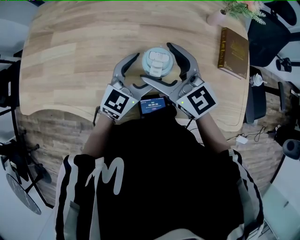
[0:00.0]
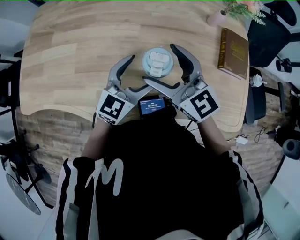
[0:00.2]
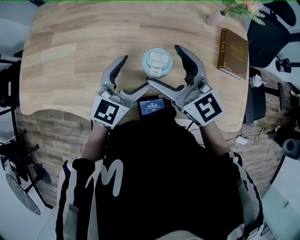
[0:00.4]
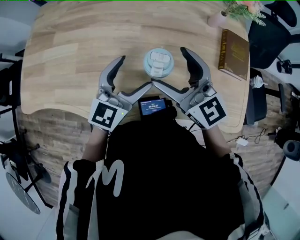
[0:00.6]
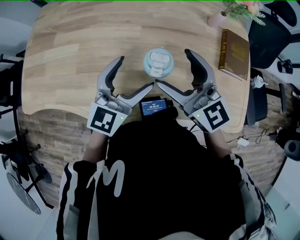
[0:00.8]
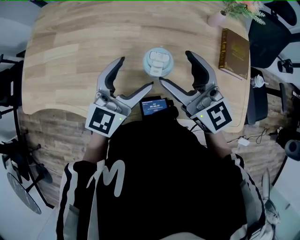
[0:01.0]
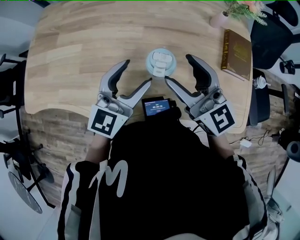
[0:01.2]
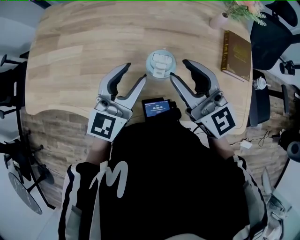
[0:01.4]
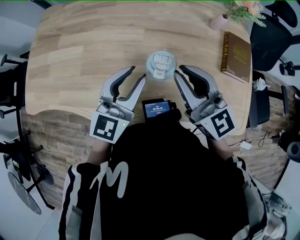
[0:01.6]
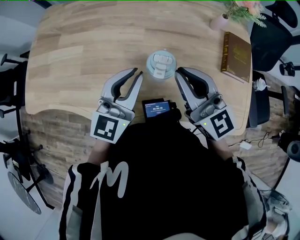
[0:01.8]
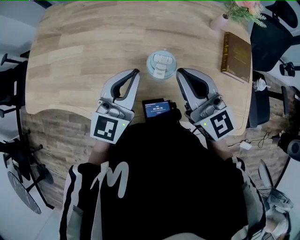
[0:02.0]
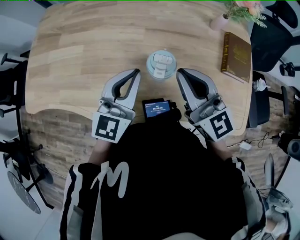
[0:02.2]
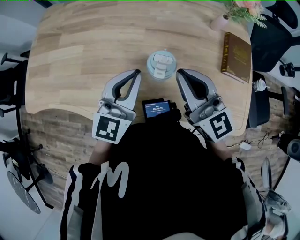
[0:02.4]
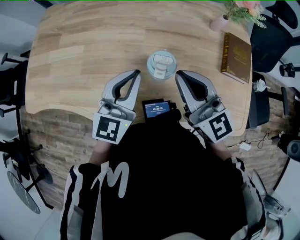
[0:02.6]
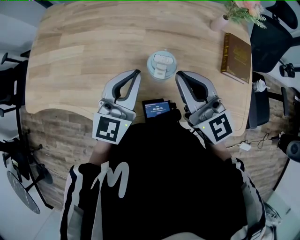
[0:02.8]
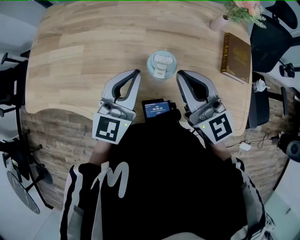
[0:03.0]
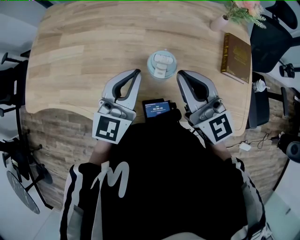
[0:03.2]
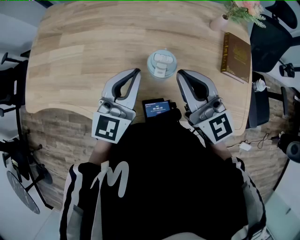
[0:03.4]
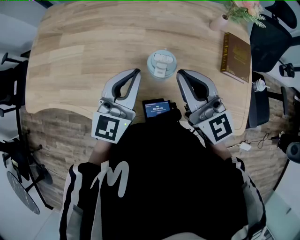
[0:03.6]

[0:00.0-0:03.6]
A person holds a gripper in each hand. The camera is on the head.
0:00.0 to 0:01.8: The left gripper is displaced upward and to the left by approximately 10 cm, and closes its fingers. Meanwhile the right gripper moves about 10 cm, and closes its fingers.
0:01.8 to 0:03.6: Neither gripper changes place.

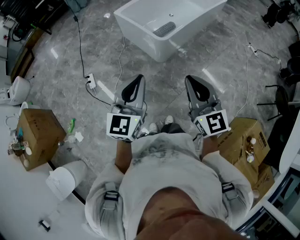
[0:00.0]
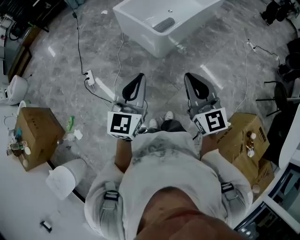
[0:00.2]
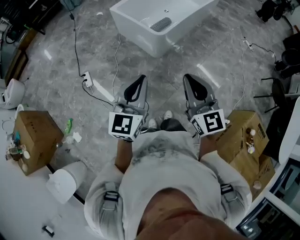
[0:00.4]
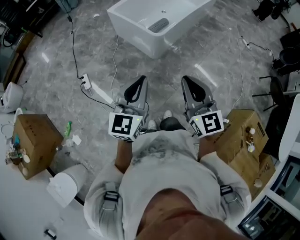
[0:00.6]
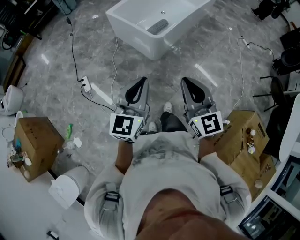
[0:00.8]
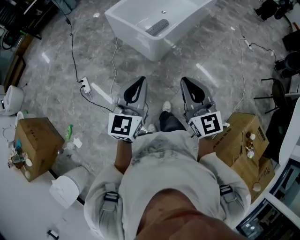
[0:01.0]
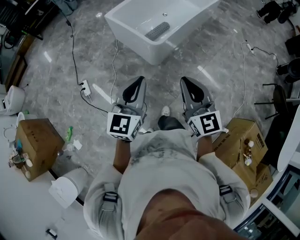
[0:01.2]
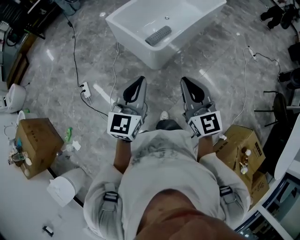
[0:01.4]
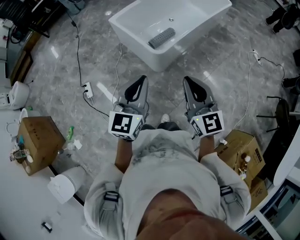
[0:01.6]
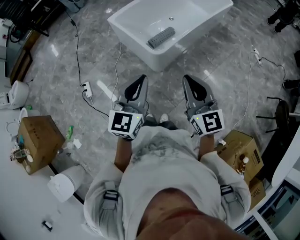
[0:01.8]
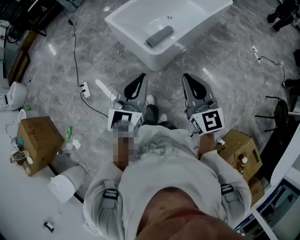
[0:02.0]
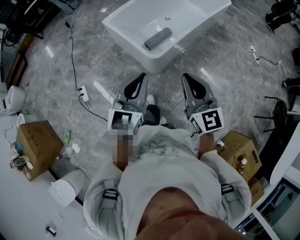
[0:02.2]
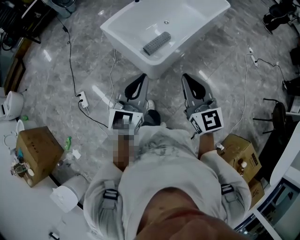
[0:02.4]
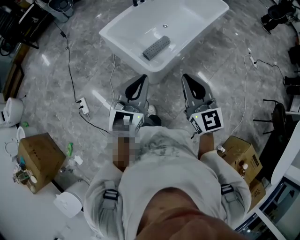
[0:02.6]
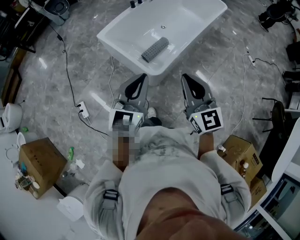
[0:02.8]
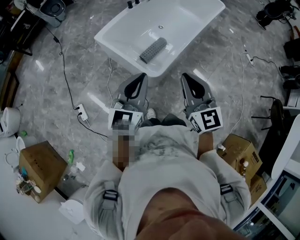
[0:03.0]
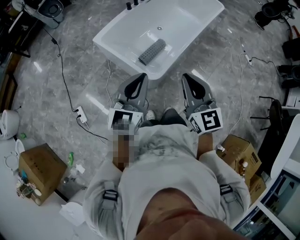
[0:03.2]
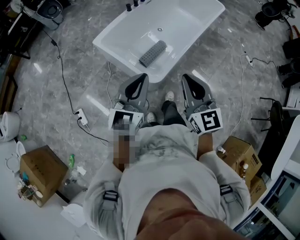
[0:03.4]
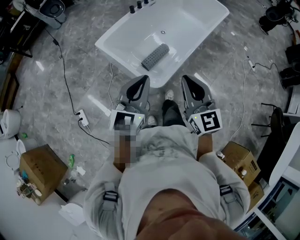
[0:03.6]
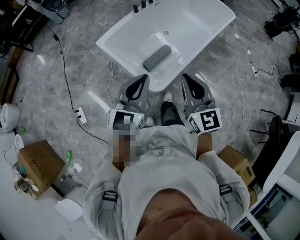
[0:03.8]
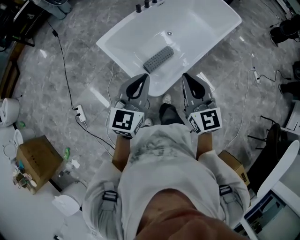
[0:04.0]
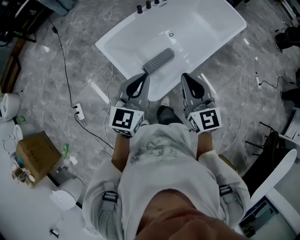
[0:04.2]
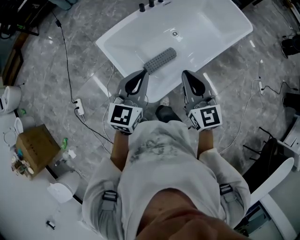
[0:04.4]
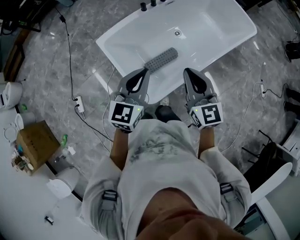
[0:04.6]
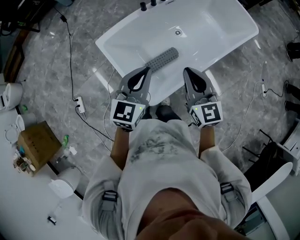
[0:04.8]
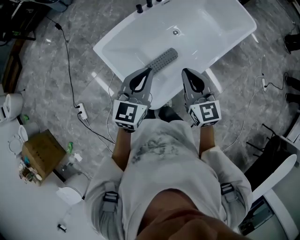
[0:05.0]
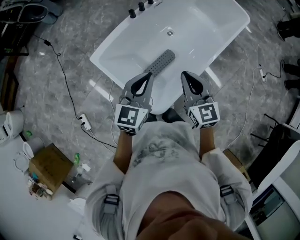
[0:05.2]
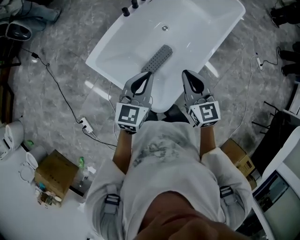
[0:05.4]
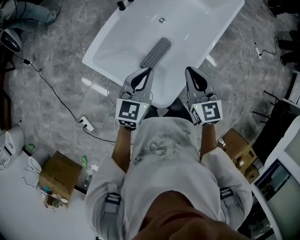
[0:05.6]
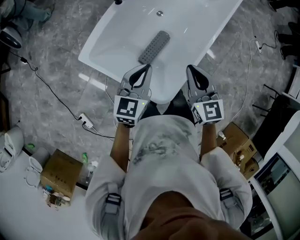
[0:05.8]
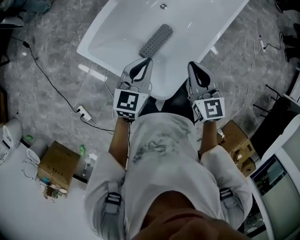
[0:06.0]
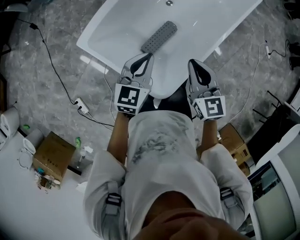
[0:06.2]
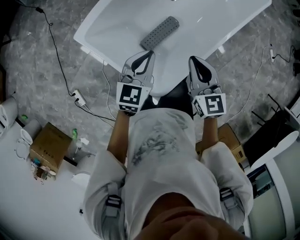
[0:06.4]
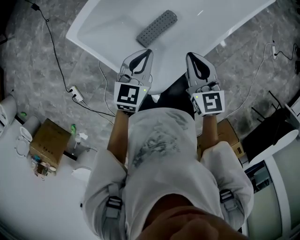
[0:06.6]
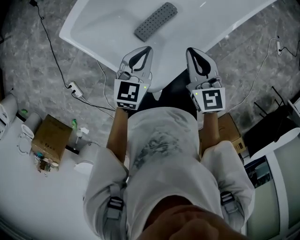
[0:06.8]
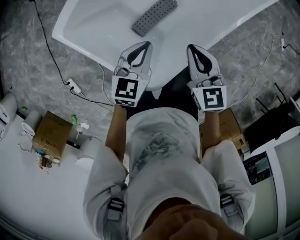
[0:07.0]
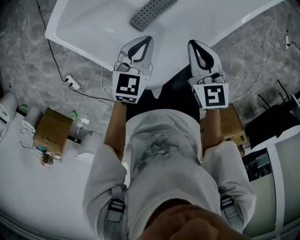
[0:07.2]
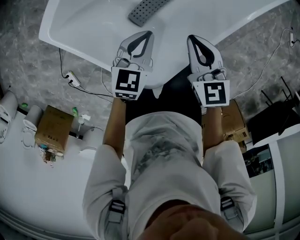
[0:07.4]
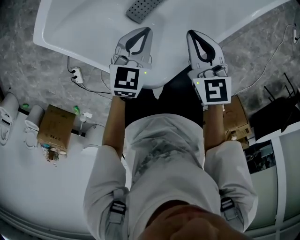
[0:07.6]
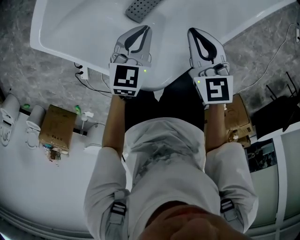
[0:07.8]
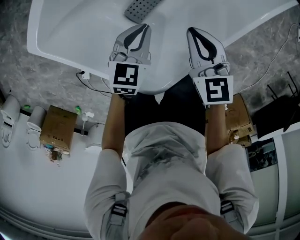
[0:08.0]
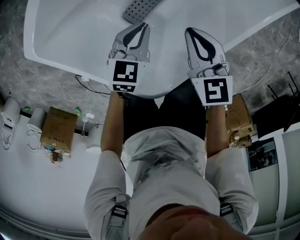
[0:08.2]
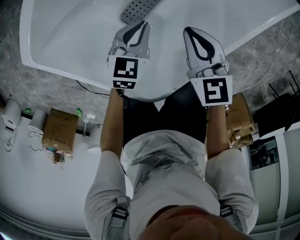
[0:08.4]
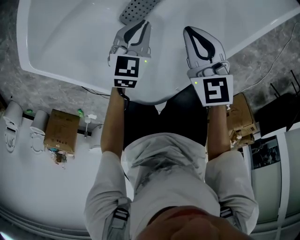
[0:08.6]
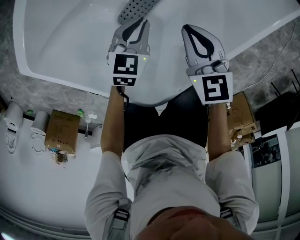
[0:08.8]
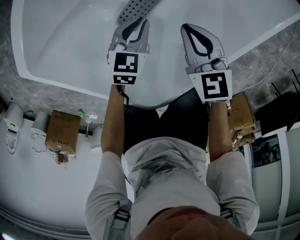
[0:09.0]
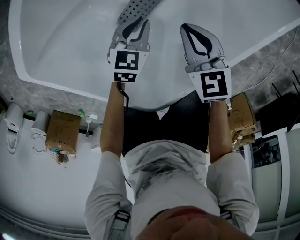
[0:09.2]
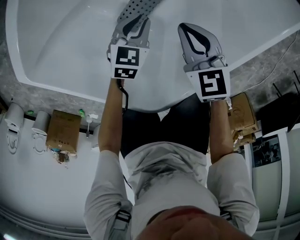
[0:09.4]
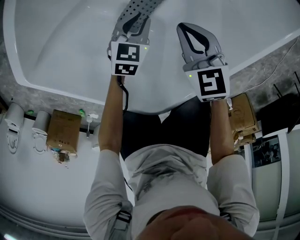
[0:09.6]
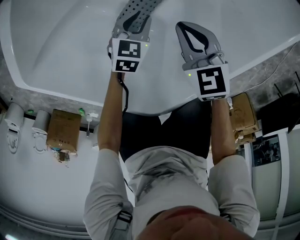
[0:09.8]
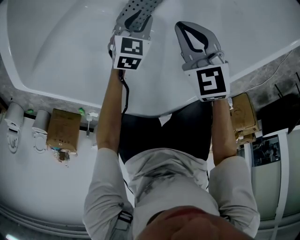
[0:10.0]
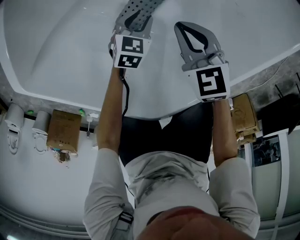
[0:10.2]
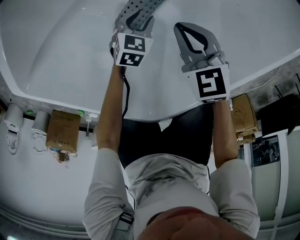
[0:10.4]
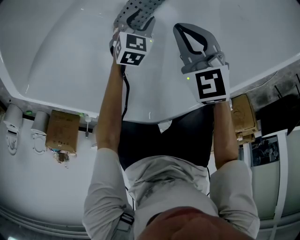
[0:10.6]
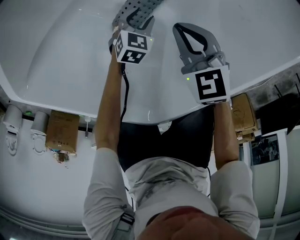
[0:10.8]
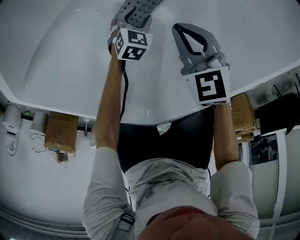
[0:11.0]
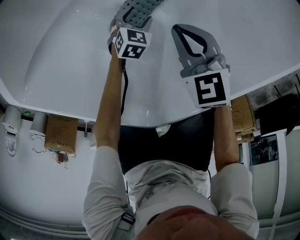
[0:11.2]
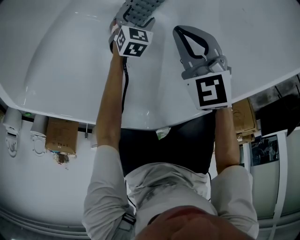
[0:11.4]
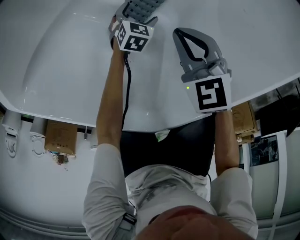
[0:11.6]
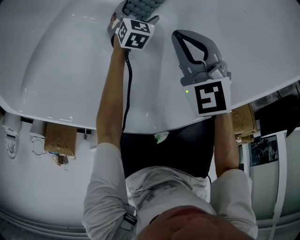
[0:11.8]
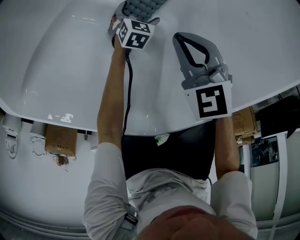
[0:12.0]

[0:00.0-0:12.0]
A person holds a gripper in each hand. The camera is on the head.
0:00.0 to 0:01.6: The grippers both shift forward by about 20 cm.
0:01.6 to 0:03.0: The two grippers go roughly 25 cm forward.
0:03.0 to 0:04.4: The grippers both shift forward by roughly 30 cm.
0:04.4 to 0:06.0: The right gripper is displaced downward, forward and to the left by roughly 20 cm, and changes its angle by roughly 20 degrees. The left gripper goes approximately 25 cm downward and forward, and changes its angle by some 20 degrees.
0:06.0 to 0:07.6: The grippers both shift downward by roughly 30 cm.
0:07.6 to 0:09.0: The two grippers go about 15 cm downward.
0:09.0 to 0:10.4: The right gripper is displaced downward by about 10 cm, while the left gripper is displaced downward by approximately 15 cm.
0:10.4 to 0:12.0: The left gripper goes some 15 cm downward, and opens.

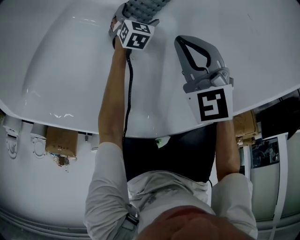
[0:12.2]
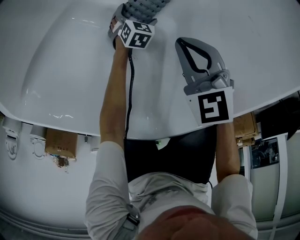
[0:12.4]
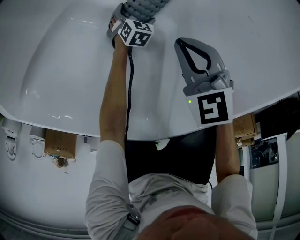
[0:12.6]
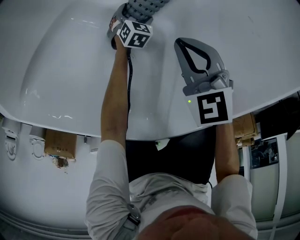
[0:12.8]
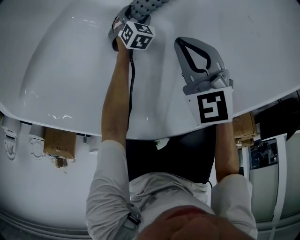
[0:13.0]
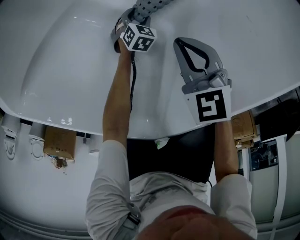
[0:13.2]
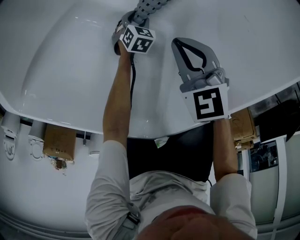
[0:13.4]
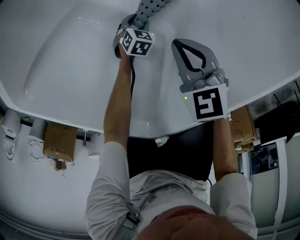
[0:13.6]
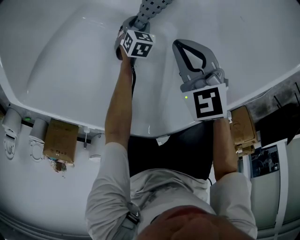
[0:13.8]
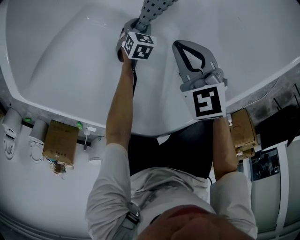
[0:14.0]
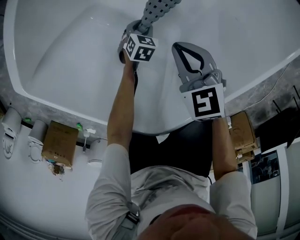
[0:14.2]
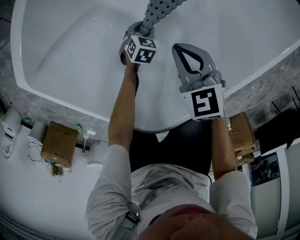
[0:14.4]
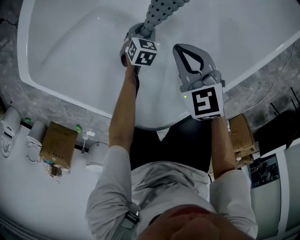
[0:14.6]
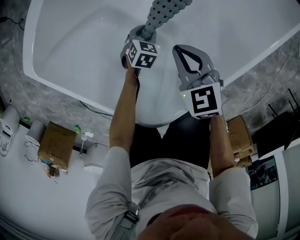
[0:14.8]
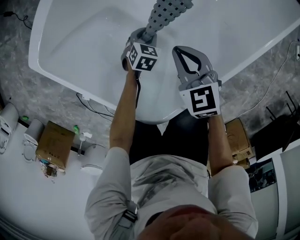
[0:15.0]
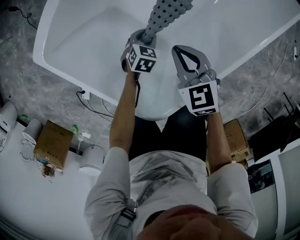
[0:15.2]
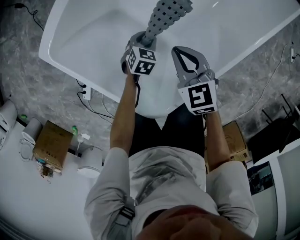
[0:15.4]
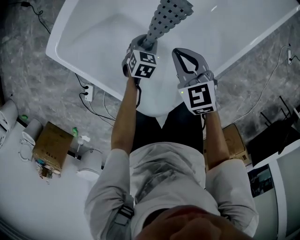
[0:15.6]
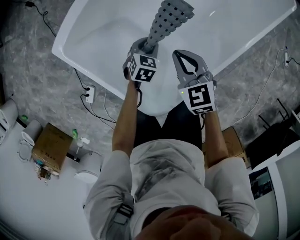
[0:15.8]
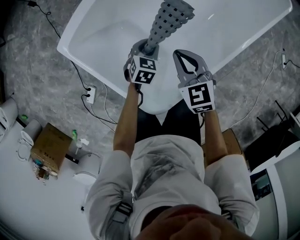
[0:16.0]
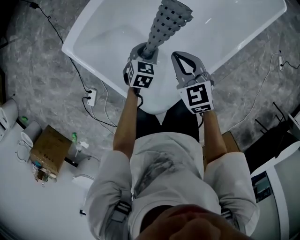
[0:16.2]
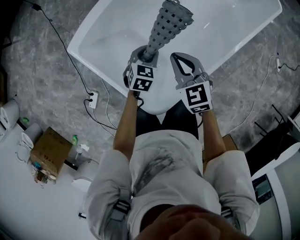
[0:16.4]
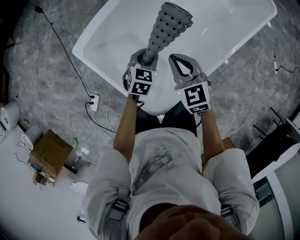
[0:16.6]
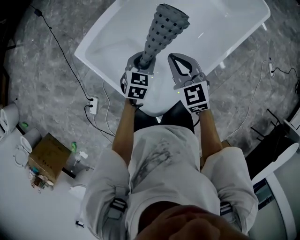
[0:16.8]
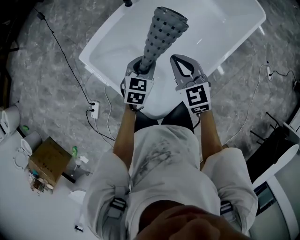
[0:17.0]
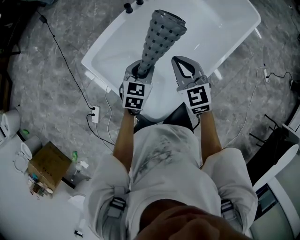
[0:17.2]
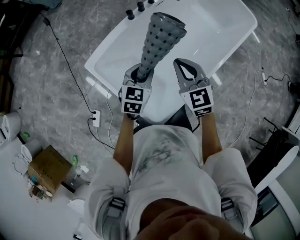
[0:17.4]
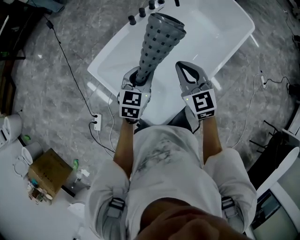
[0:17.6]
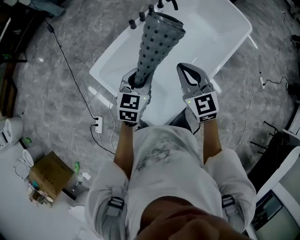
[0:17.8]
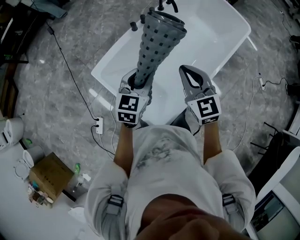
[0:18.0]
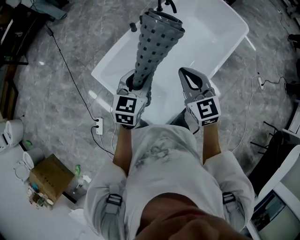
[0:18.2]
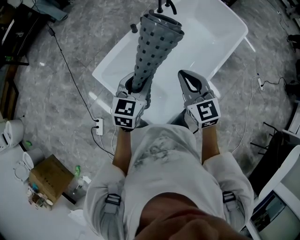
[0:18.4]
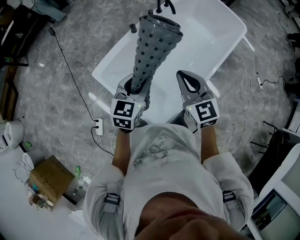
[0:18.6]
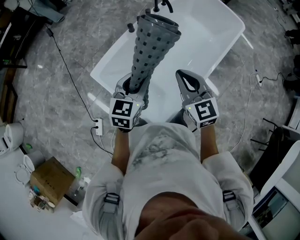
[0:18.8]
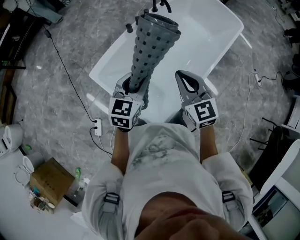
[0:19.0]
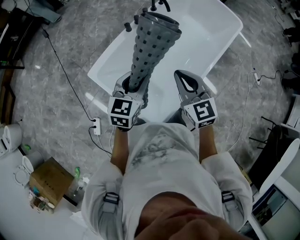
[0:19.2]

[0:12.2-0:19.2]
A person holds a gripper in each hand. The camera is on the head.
0:12.2 to 0:13.6: The left gripper closes up.
0:13.6 to 0:15.0: The grippers both shift upward by roughly 20 cm.
0:15.0 to 0:16.4: Both grippers move upward, roughly 25 cm.
0:16.4 to 0:17.8: The grippers both shift upward by roughly 30 cm. The left gripper rotates approximately 20 degrees.
0:17.8 to 0:19.2: The left gripper shifts about 5 cm upward; the right gripper shifts by roughly 5 cm.

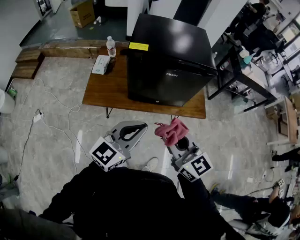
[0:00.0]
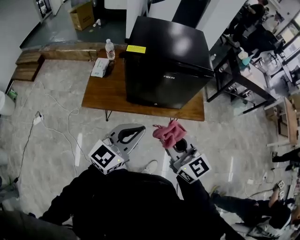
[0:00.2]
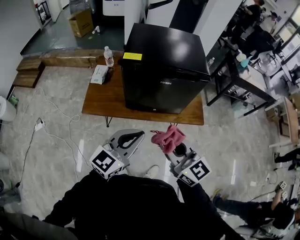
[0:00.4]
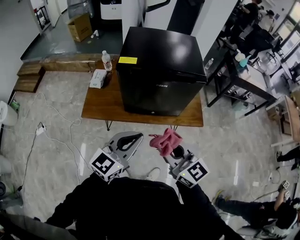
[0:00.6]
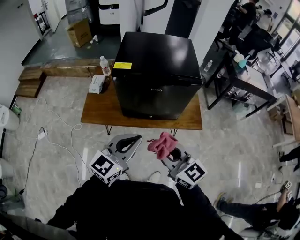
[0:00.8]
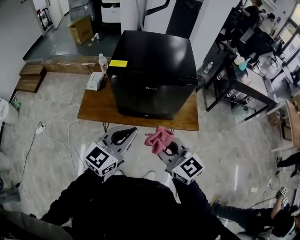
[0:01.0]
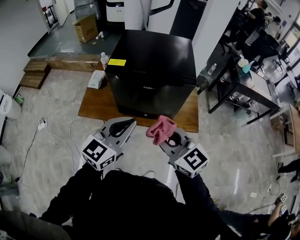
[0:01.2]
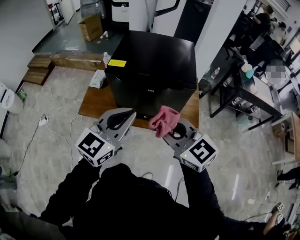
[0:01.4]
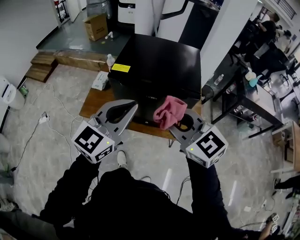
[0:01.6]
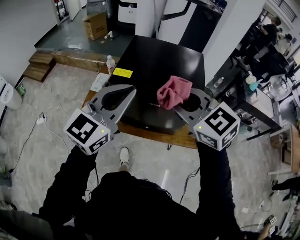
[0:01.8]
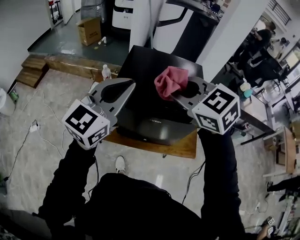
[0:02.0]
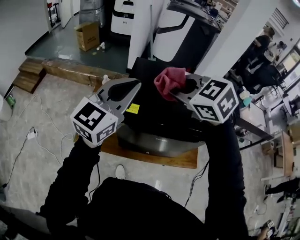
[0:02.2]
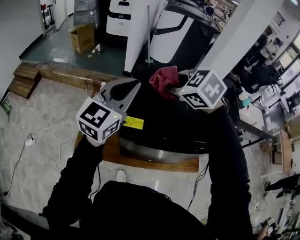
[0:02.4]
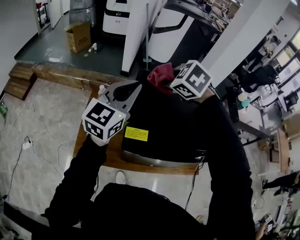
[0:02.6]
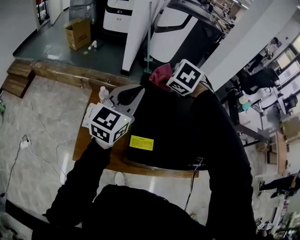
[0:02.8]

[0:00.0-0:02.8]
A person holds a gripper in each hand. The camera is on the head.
0:00.0 to 0:01.4: The left gripper is displaced to the right, upward and forward by approximately 15 cm; the right gripper is displaced to the right, forward and upward by some 15 cm, and changes its angle by approximately 20 degrees.
0:01.4 to 0:02.8: Both grippers are carried forward, approximately 50 cm. The right gripper tips its fingers downward by approximately 50 degrees.
